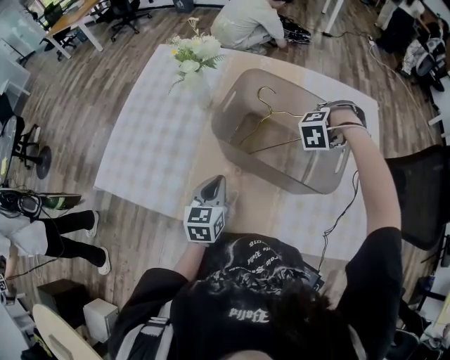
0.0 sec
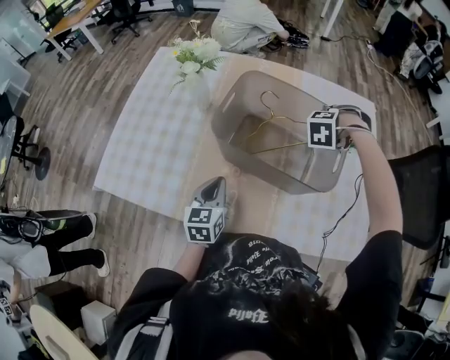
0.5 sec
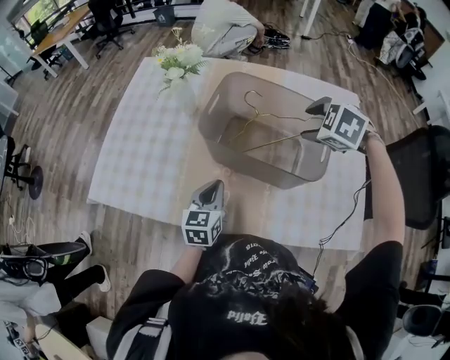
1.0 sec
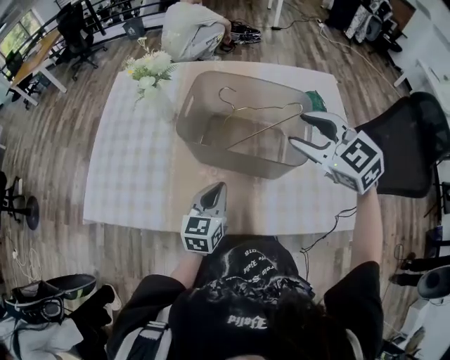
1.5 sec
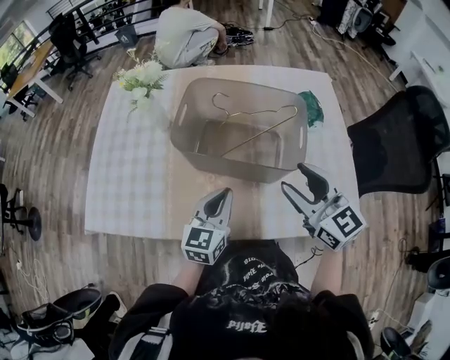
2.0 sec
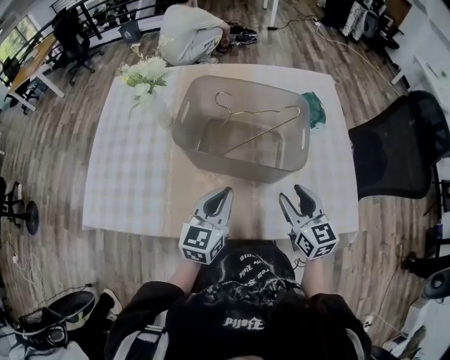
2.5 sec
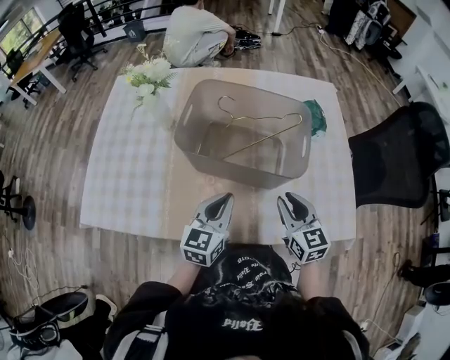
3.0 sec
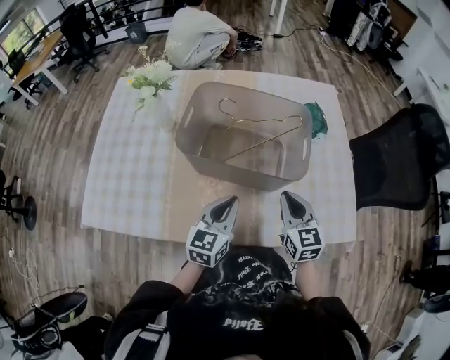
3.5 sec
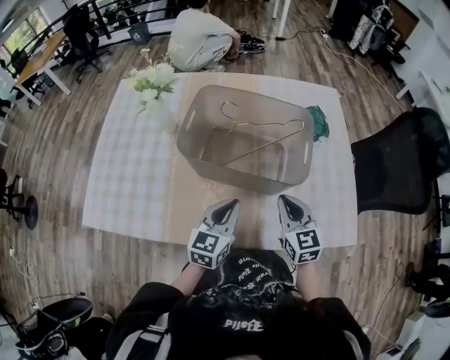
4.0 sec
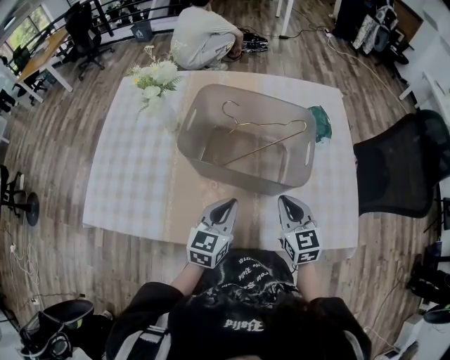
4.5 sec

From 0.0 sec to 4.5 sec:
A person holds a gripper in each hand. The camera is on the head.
From 0.0 sec to 2.0 sec: The right gripper moves some 25 cm, and tilts its fingers about 50 degrees upward. Meanwhile the left gripper shifts by approximately 15 cm, and turns by some 30 degrees.
From 2.0 sec to 4.5 sec: The right gripper is displaced downward by some 15 cm, rotates approximately 20 degrees, and closes up.

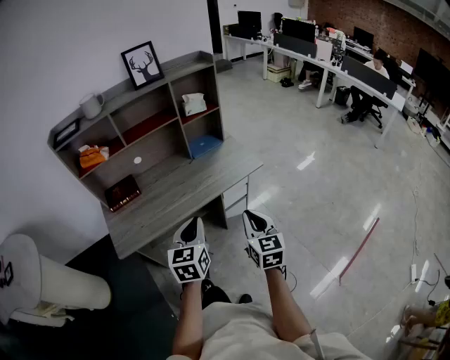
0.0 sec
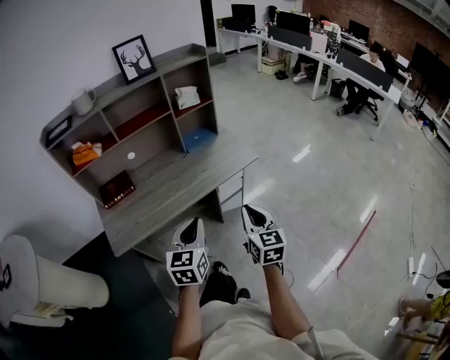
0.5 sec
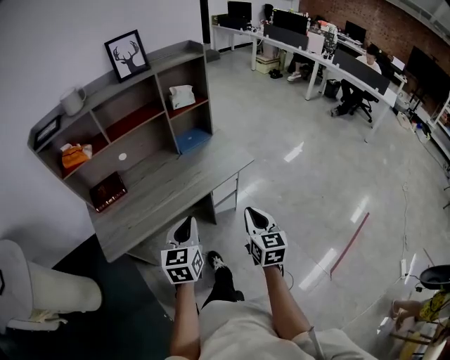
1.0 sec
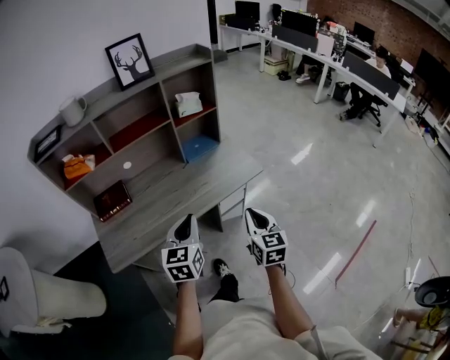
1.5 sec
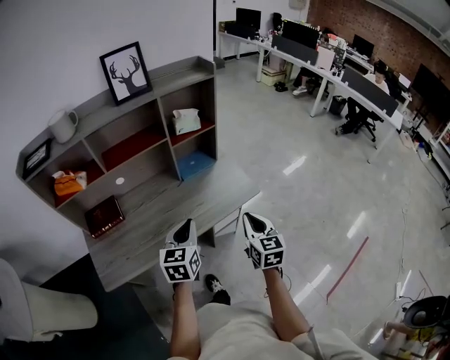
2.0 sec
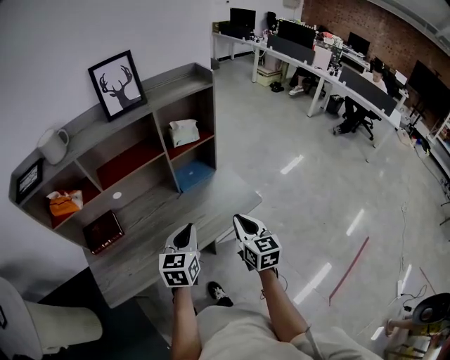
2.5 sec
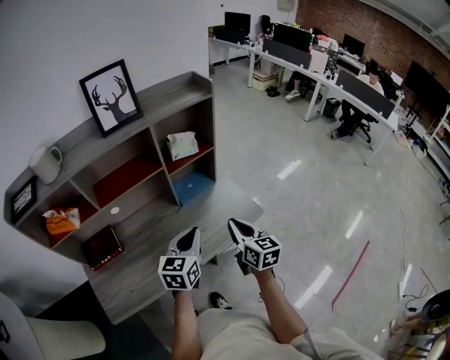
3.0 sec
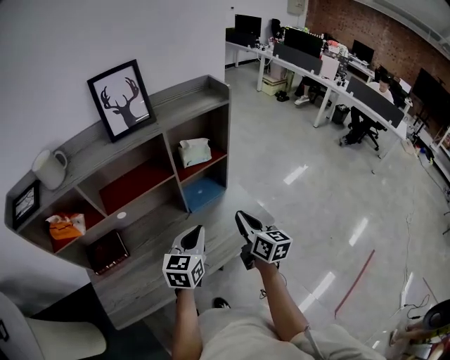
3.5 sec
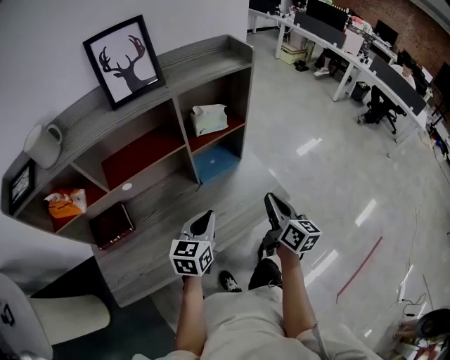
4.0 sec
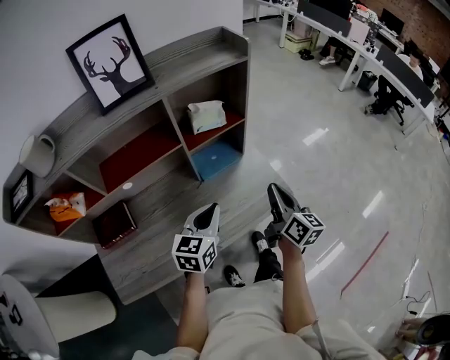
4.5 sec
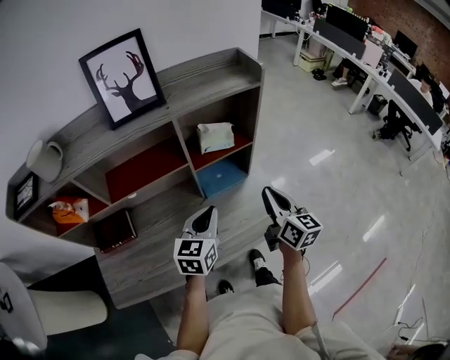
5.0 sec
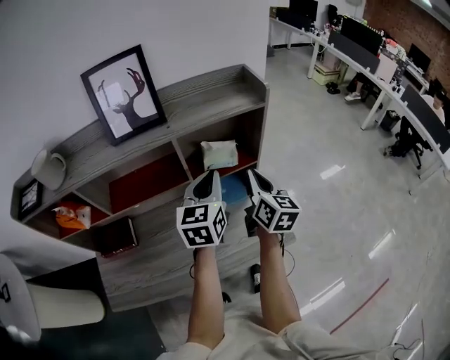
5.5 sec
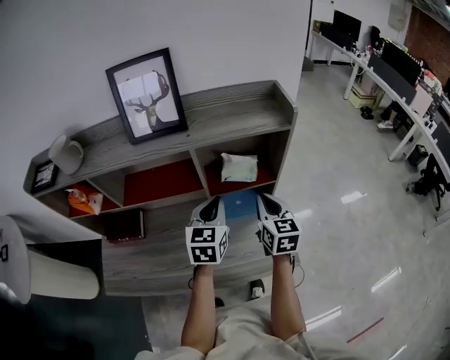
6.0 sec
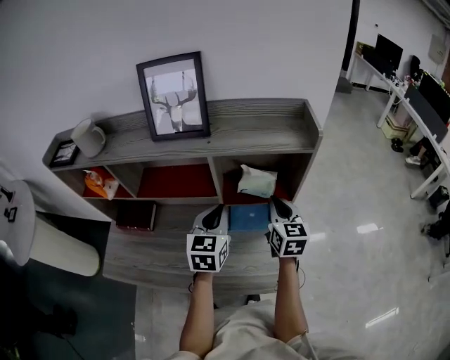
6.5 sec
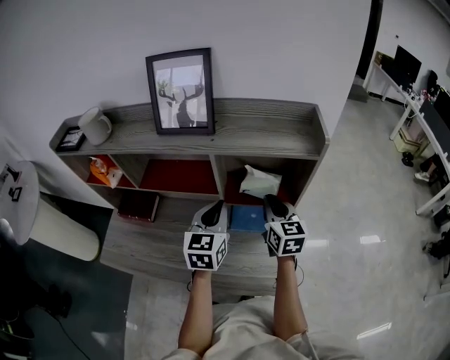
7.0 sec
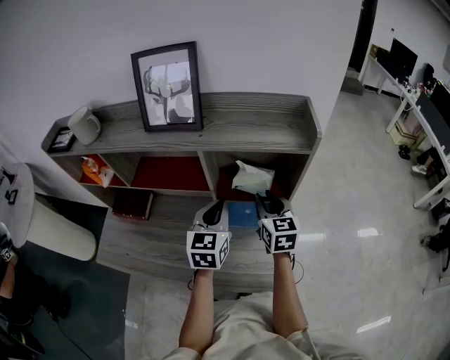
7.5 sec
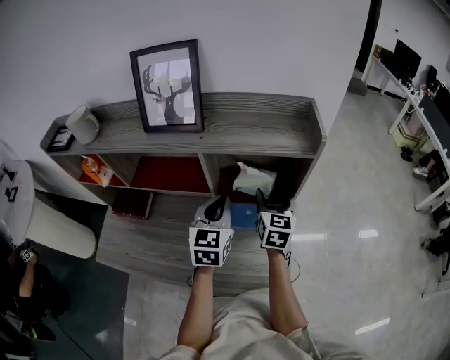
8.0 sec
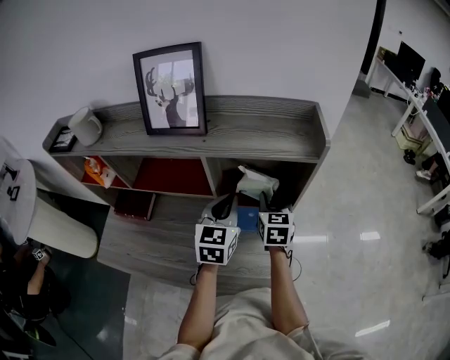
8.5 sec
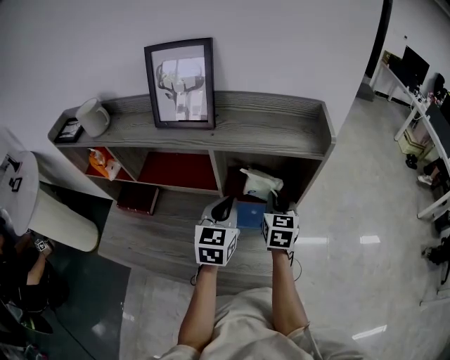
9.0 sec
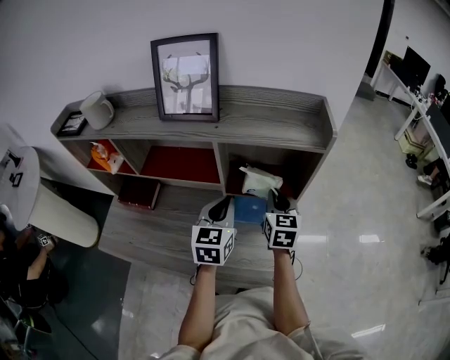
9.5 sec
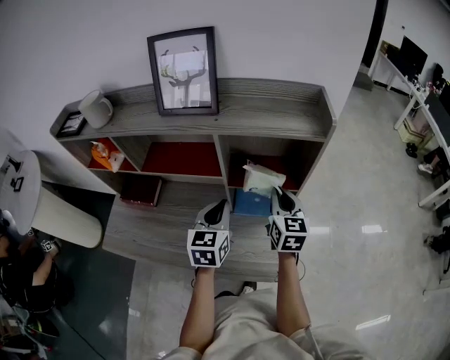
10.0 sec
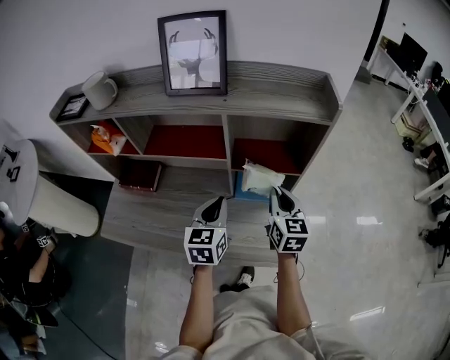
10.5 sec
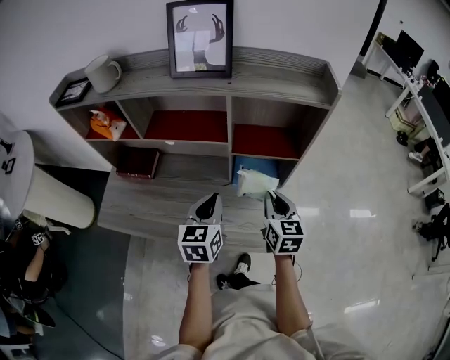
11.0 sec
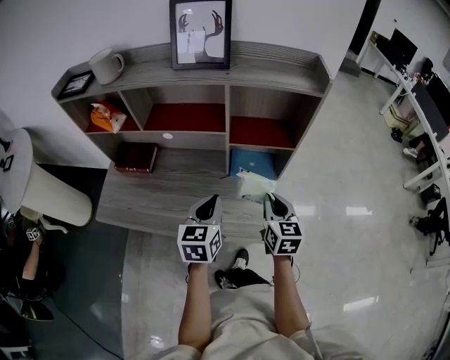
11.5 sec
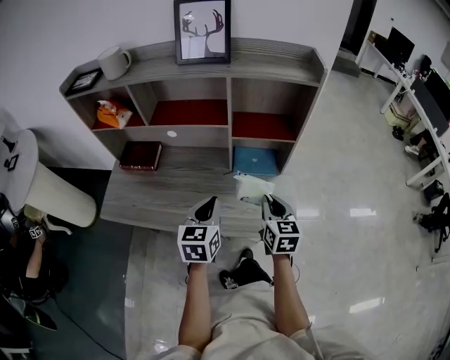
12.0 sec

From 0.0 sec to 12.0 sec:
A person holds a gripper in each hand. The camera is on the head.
From 0.0 sec to 2.0 sec: The grippers both shift forward by some 20 cm.
From 2.0 sec to 4.0 sec: The grippers both shift forward by some 20 cm. The right gripper swivels approximately 30 degrees.
From 4.0 sec to 6.0 sec: The left gripper shifts approximately 20 cm forward and upward, and rotates about 30 degrees. Meanwhile the right gripper heads forward, covering about 20 cm, and rotates roughly 30 degrees.
From 6.0 sec to 8.0 sec: The right gripper shifts about 10 cm forward, and opens.
From 8.0 sec to 10.0 sec: Both grippers move backward, approximately 5 cm. The right gripper closes up.
From 10.0 sec to 12.0 sec: Both grippers travel together backward, approximately 20 cm.

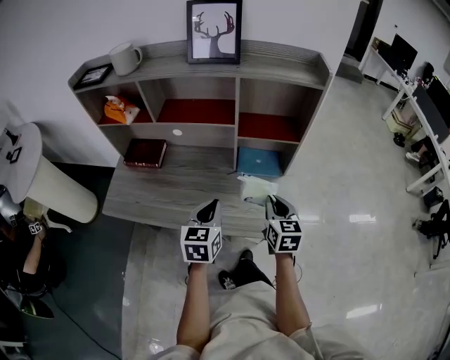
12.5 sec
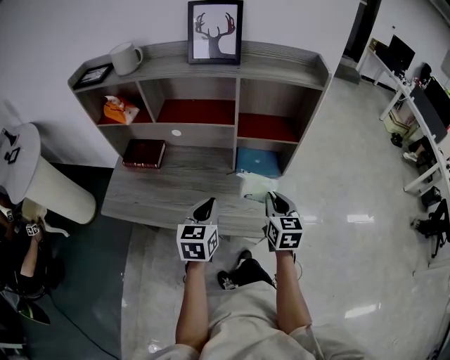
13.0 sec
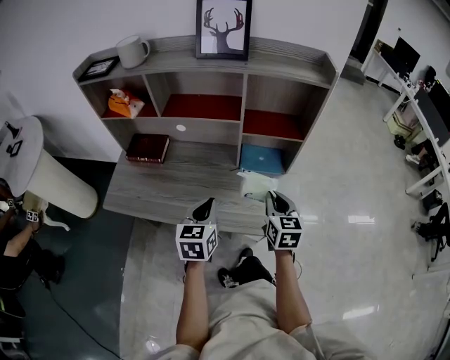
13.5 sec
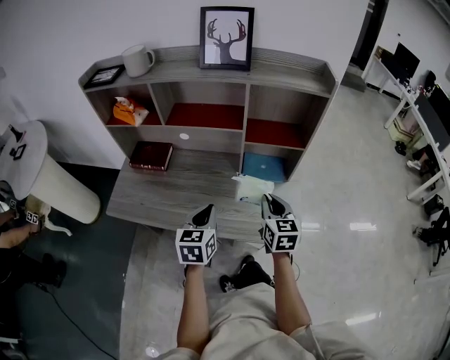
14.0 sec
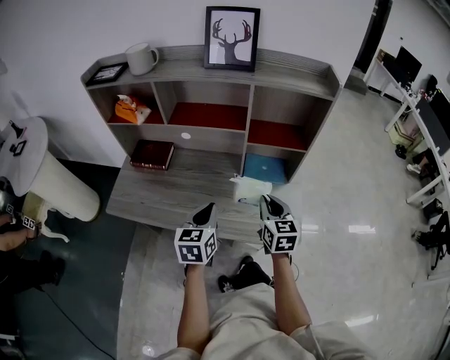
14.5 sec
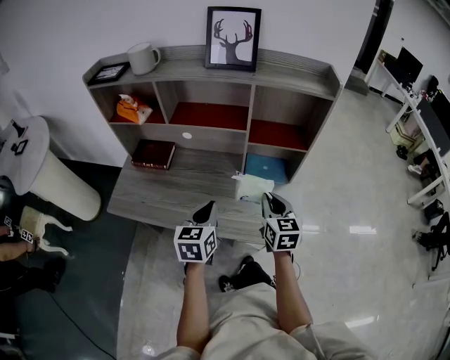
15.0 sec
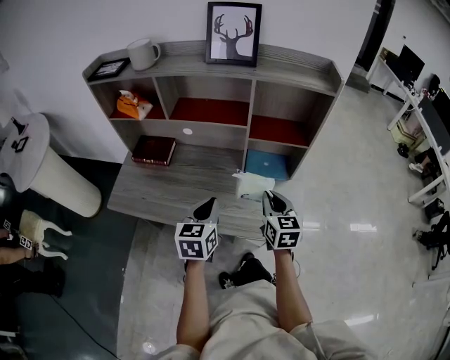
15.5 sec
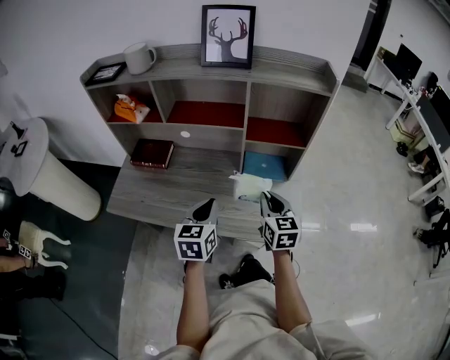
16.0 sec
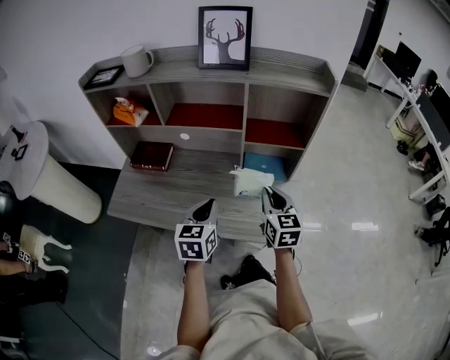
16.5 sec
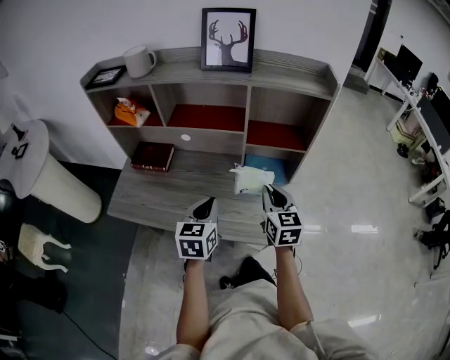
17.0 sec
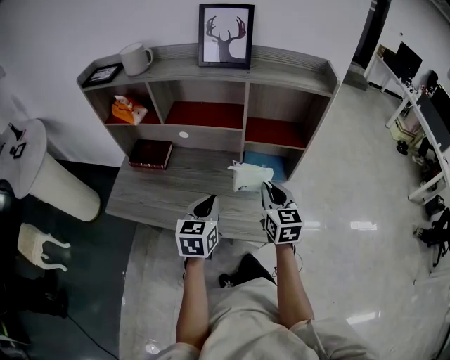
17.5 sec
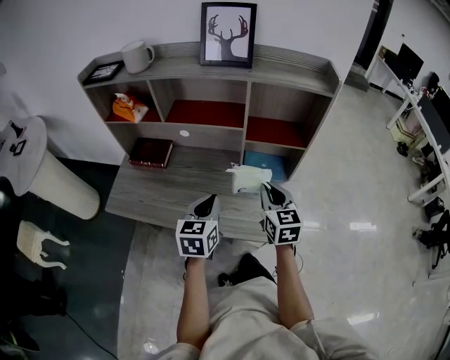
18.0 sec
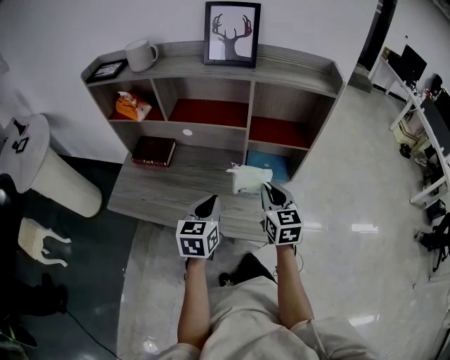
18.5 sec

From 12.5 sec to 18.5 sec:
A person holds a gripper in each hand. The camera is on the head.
From 12.5 sec to 14.5 sec: The right gripper moves about 5 cm.
From 14.5 sec to 18.5 sec: The grippers make only small movements.

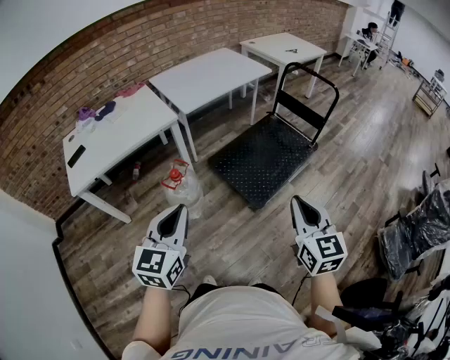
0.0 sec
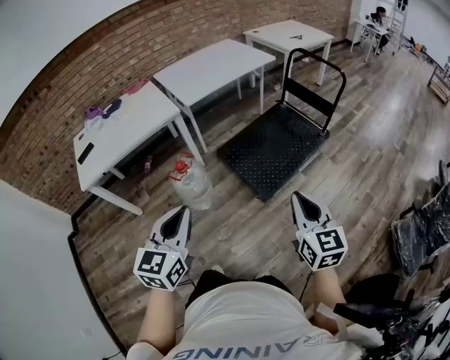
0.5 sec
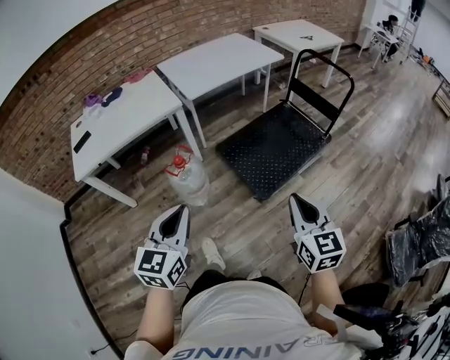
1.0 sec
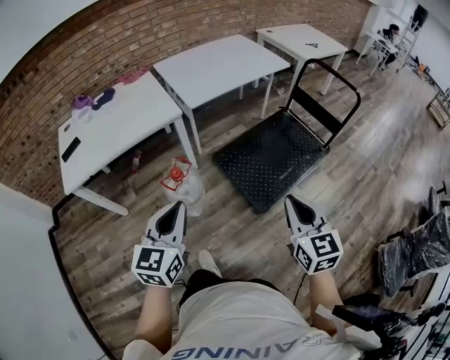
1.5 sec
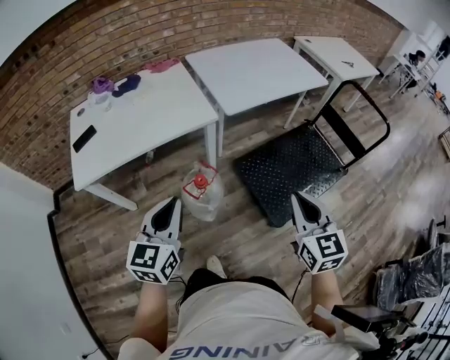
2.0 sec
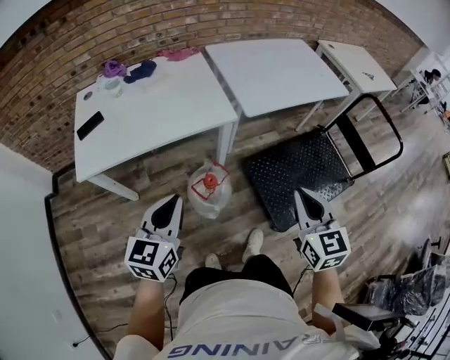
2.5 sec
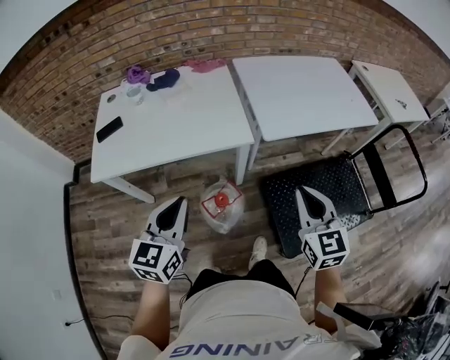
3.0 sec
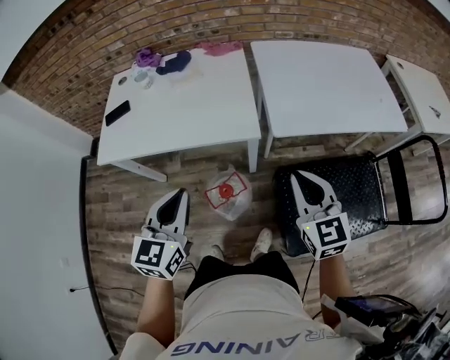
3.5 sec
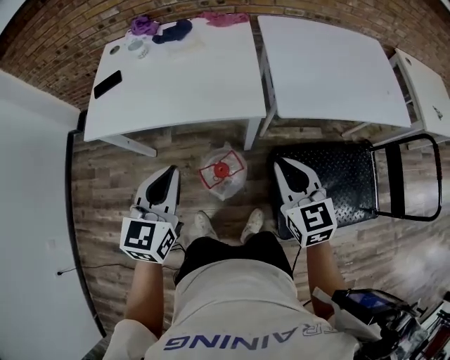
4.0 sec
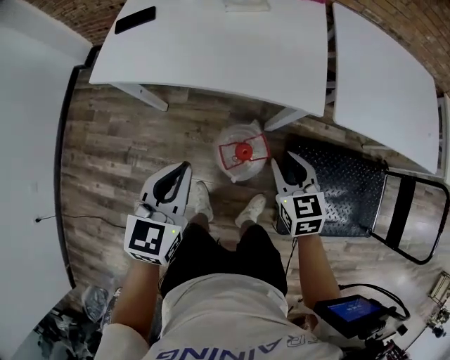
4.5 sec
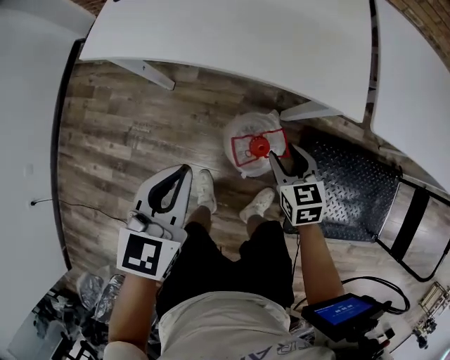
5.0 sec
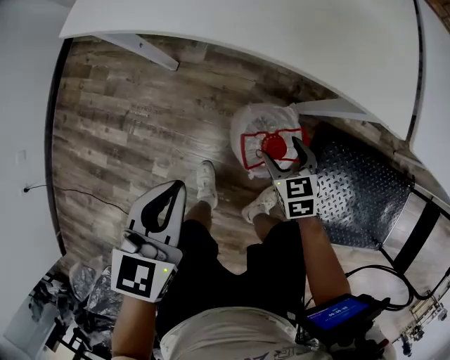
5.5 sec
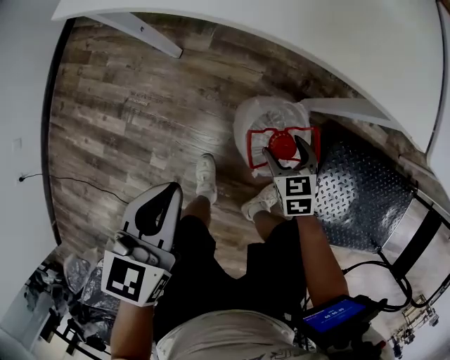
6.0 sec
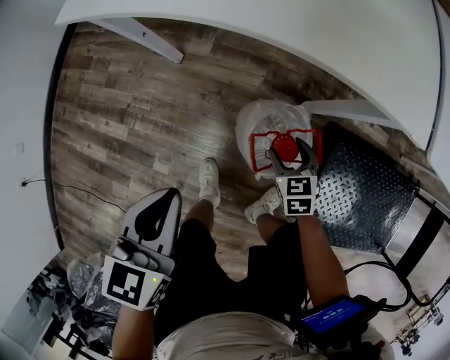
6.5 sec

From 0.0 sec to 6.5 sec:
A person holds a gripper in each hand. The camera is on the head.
From 0.0 sec to 2.0 sec: Both grippers move forward and to the left, roughly 25 cm.
From 2.0 sec to 4.5 sec: The left gripper changes place by some 20 cm, and changes its angle by approximately 30 degrees. The right gripper changes place by roughly 40 cm, and changes its angle by about 40 degrees.
From 4.5 sec to 6.5 sec: The right gripper moves downward, some 30 cm, and opens its fingers, while the left gripper heads downward and to the left, covering some 15 cm.
